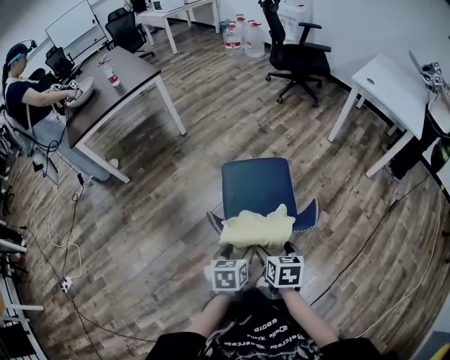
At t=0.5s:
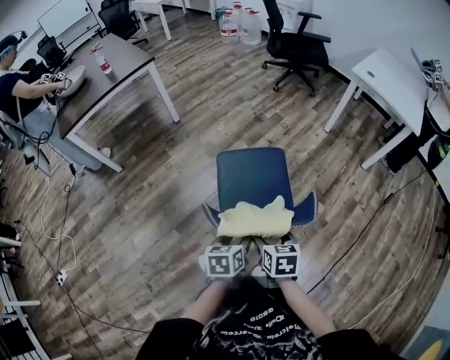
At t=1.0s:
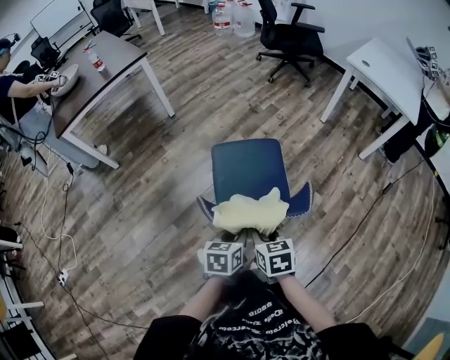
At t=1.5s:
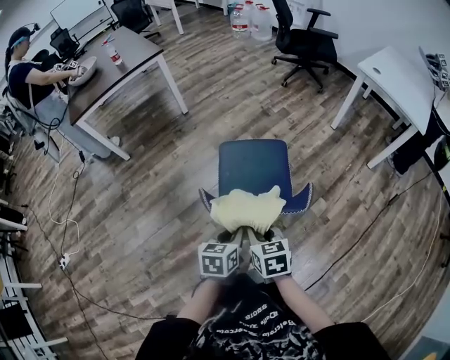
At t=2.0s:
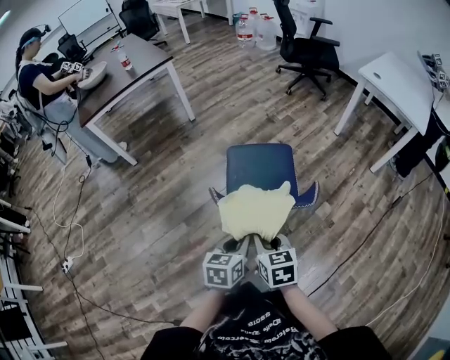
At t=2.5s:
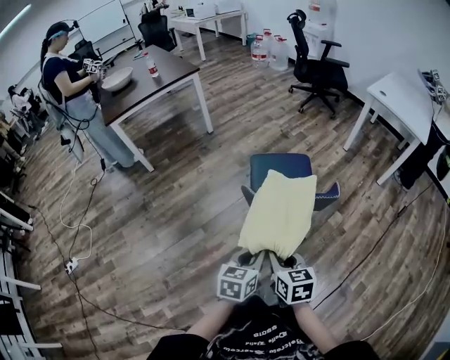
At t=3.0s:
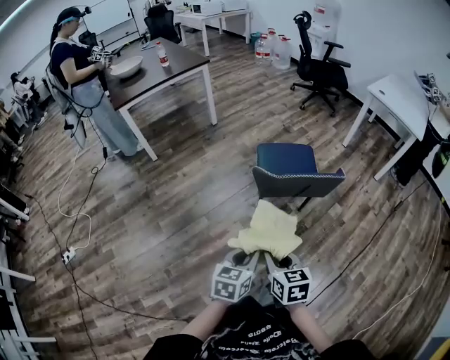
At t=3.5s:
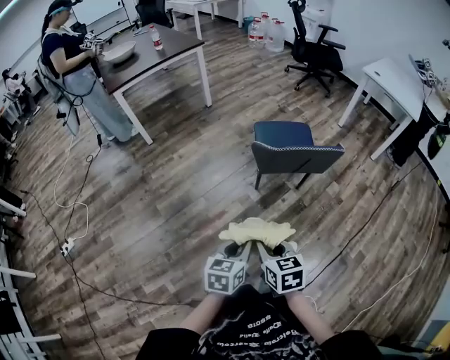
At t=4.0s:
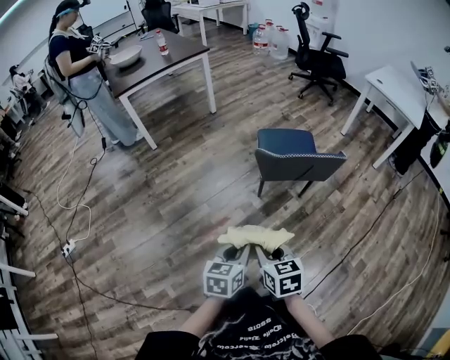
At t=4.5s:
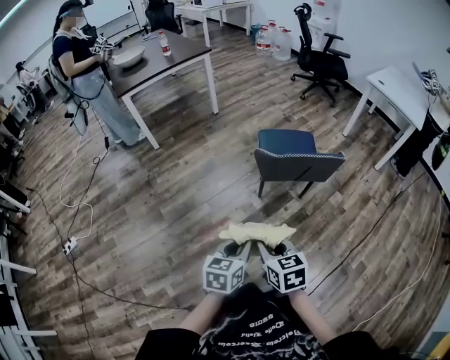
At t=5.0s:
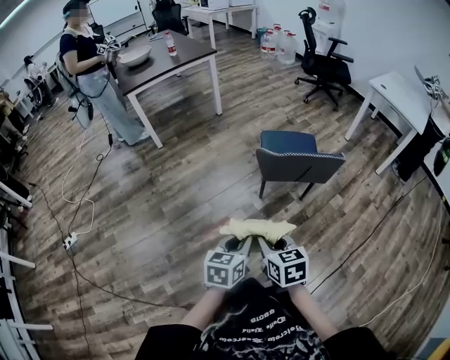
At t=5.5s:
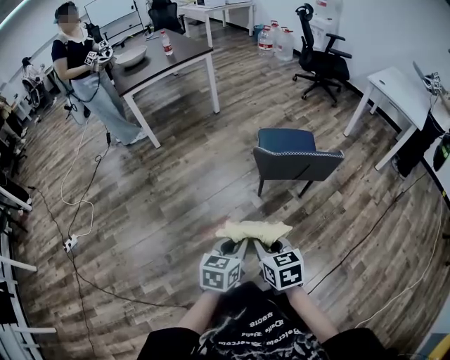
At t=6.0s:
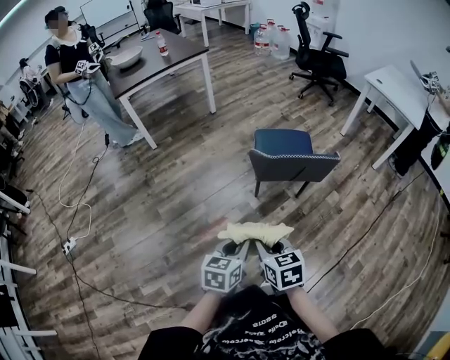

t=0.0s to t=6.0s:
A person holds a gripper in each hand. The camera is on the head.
t=0.0s to t=2.0s: The right gripper moves roughly 5 cm, and closes up. Meanwhile the left gripper moves roughly 5 cm, and closes up.
t=2.0s to t=4.0s: Both grippers travel together backward and to the left, about 30 cm.
t=4.0s to t=6.0s: The grippers make only small movements.

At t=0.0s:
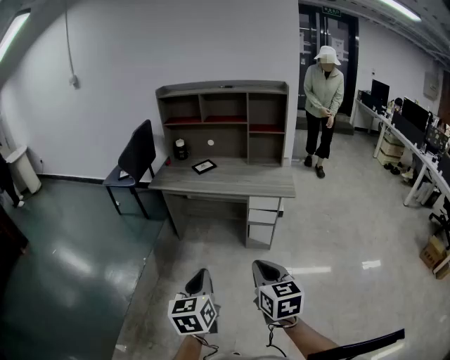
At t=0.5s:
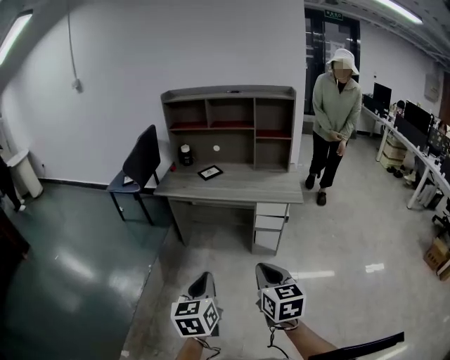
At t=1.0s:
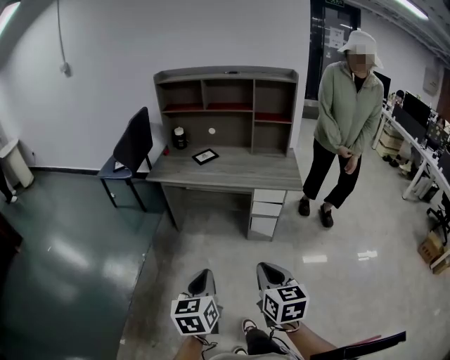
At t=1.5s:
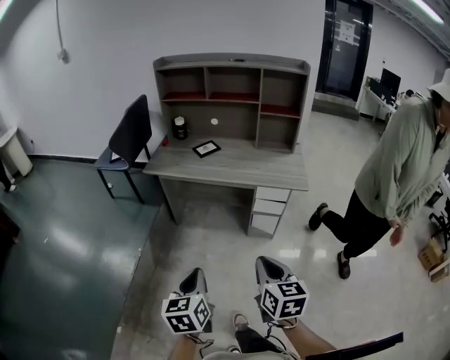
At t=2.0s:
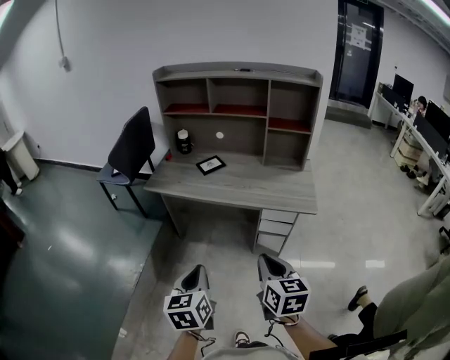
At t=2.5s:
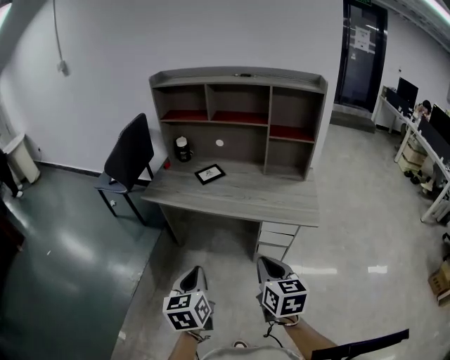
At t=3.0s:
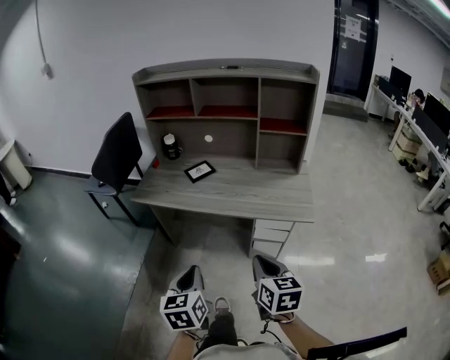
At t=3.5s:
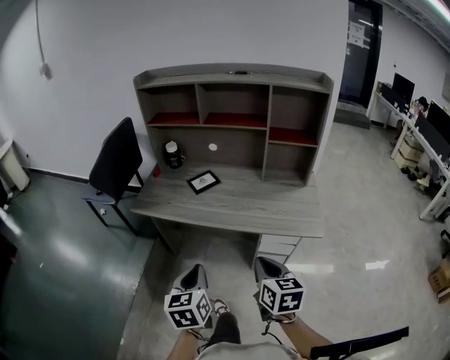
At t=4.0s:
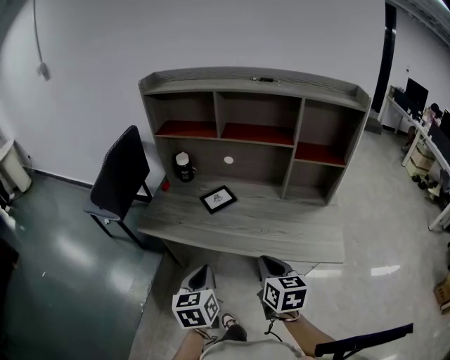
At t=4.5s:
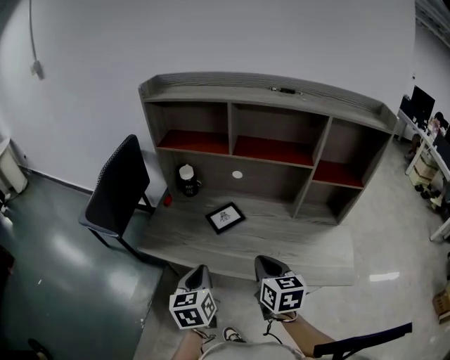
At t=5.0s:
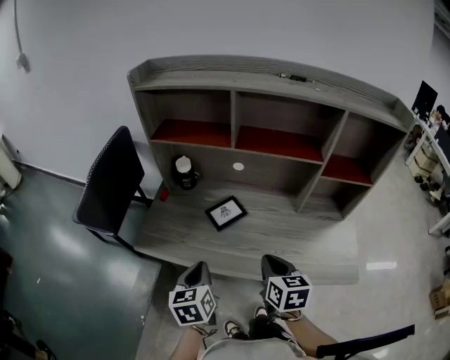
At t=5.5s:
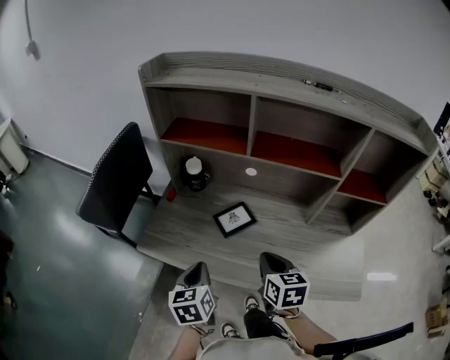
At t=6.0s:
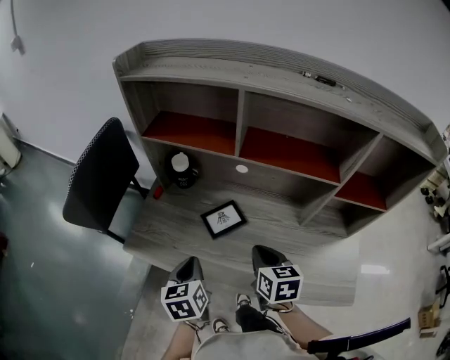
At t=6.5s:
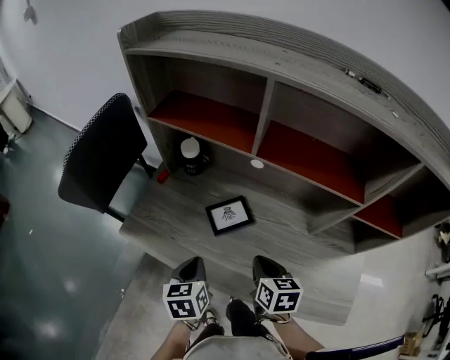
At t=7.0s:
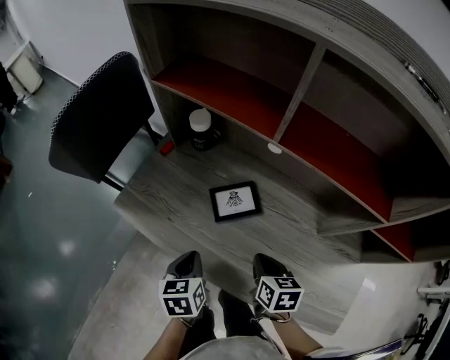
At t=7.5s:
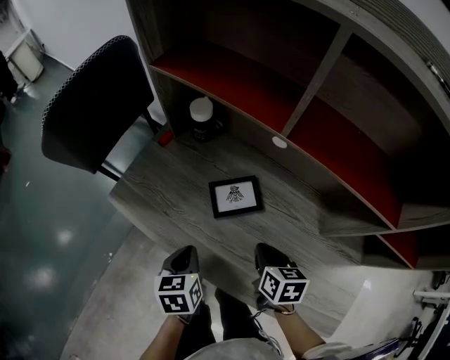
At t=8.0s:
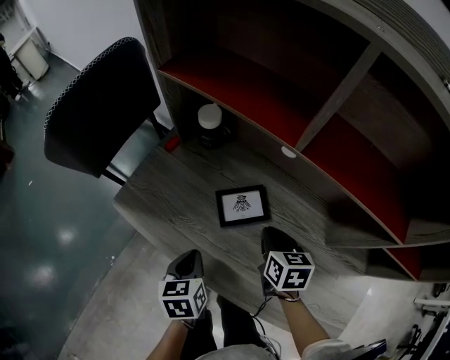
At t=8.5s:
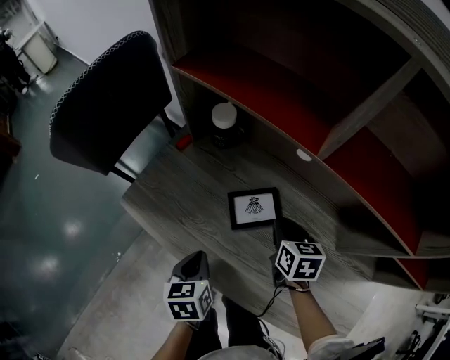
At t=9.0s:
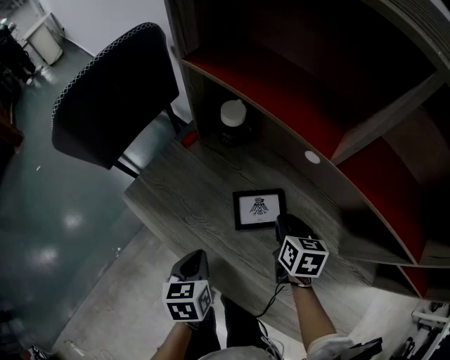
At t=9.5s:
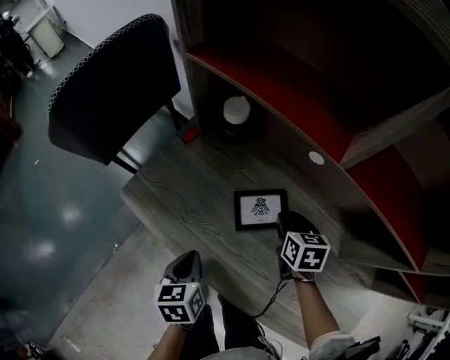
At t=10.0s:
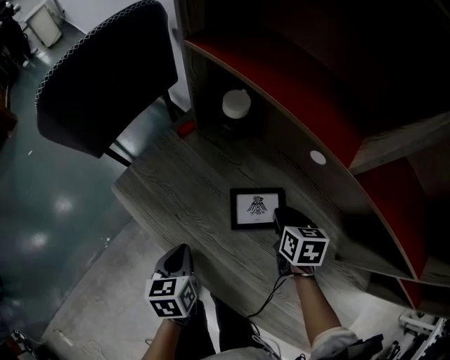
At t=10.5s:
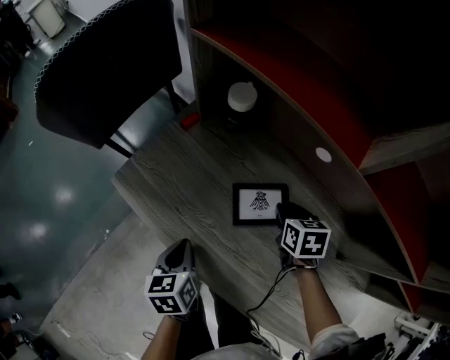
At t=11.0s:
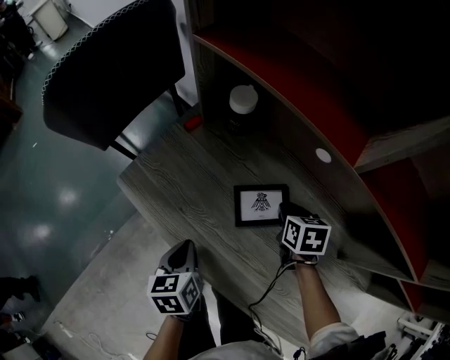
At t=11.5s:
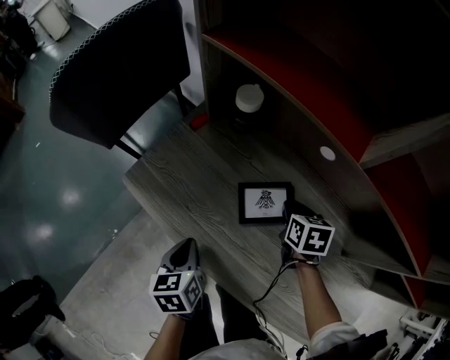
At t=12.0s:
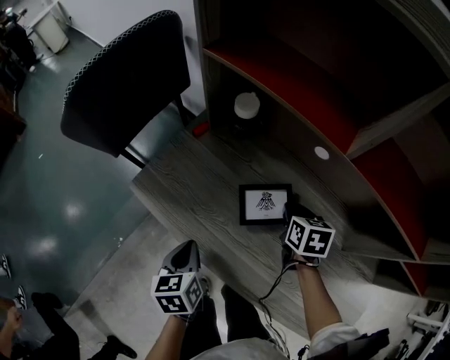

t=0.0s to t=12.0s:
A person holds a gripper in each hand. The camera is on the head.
t=0.0s to t=2.0s: Both grippers travel together forward, some 20 cm.
t=2.0s to t=4.0s: The grippers both shift forward by approximately 30 cm.
t=4.0s to t=6.0s: The two grippers go roughly 25 cm forward.
t=6.0s to t=8.0s: The right gripper moves downward and forward, some 15 cm. The left gripper travels downward by about 10 cm.
t=8.0s to t=10.0s: The right gripper moves forward and downward, about 10 cm, and opens. Meanwhile the left gripper changes place by about 5 cm.
t=10.0s to t=12.0s: The grippers stay close to where they were, moving slightly.

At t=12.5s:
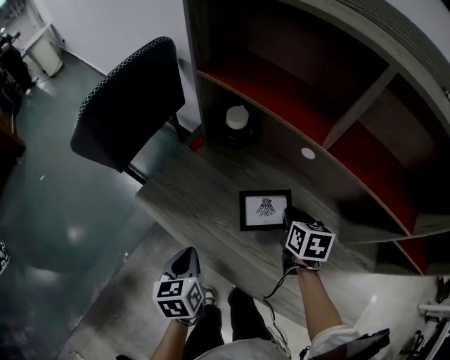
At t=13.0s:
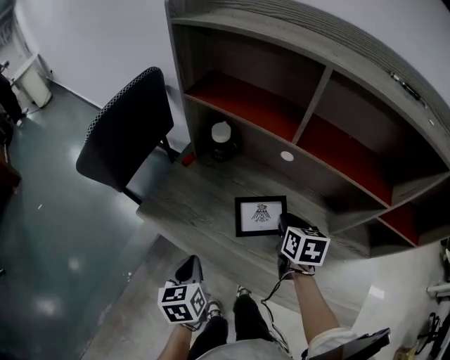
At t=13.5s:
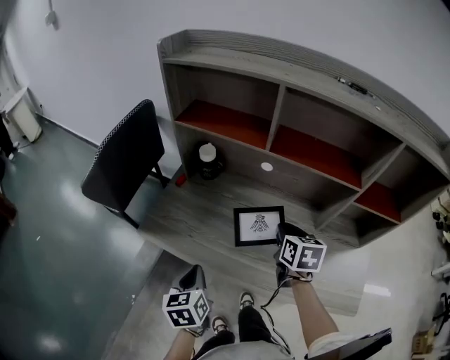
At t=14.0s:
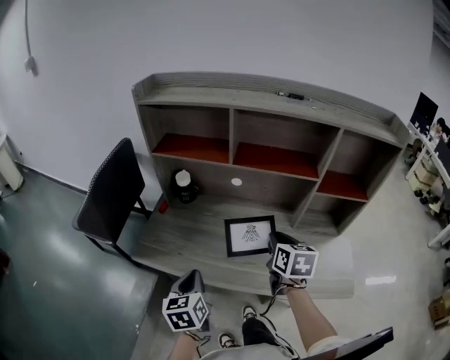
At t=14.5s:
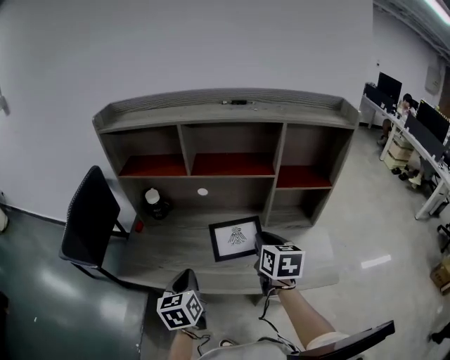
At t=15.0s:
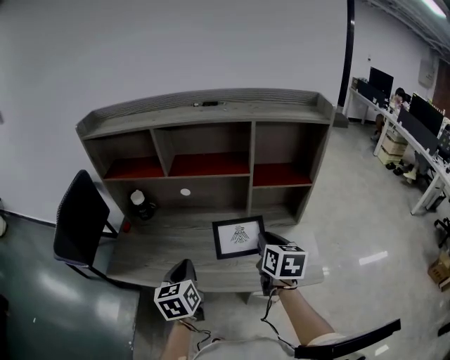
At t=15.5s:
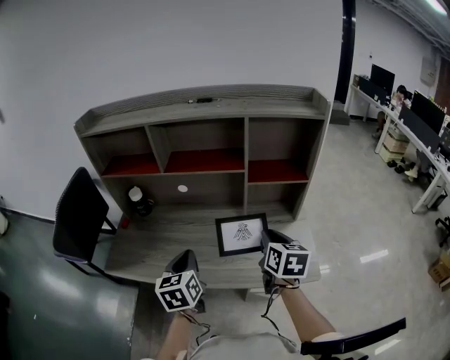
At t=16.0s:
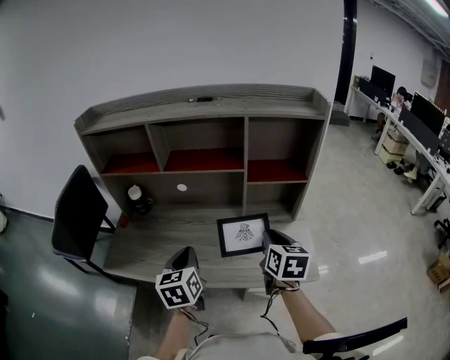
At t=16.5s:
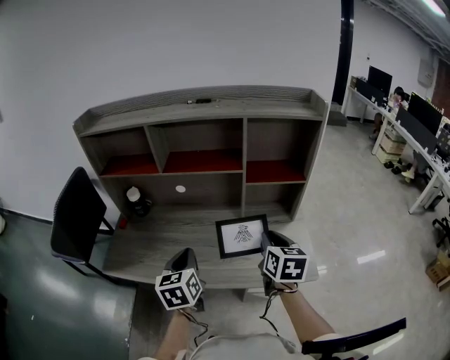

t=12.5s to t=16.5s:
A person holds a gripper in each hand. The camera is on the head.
t=12.5s to t=14.5s: The left gripper moves upward, approximately 15 cm, and turns by about 30 degrees, while the right gripper moves approximately 30 cm, and rotates roughly 30 degrees.
t=14.5s to t=16.5s: Both grippers travel together to the right, some 10 cm.

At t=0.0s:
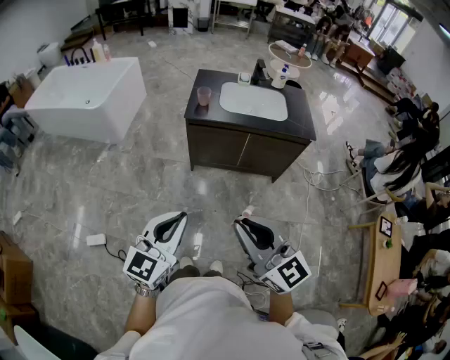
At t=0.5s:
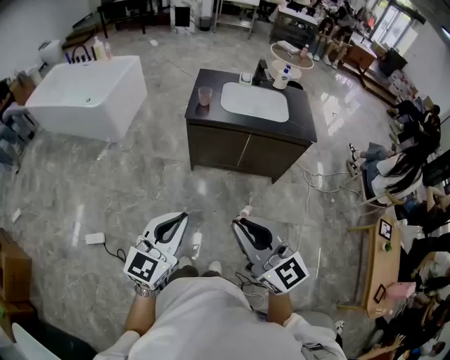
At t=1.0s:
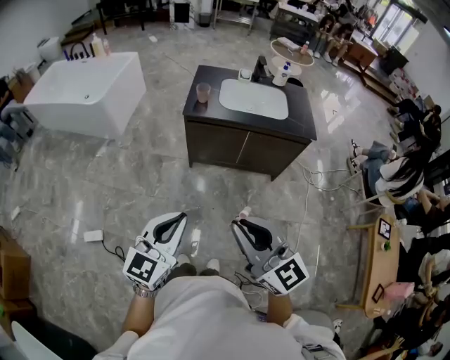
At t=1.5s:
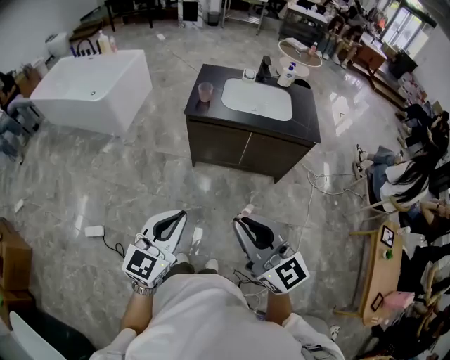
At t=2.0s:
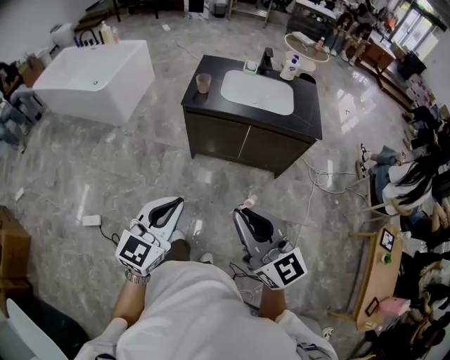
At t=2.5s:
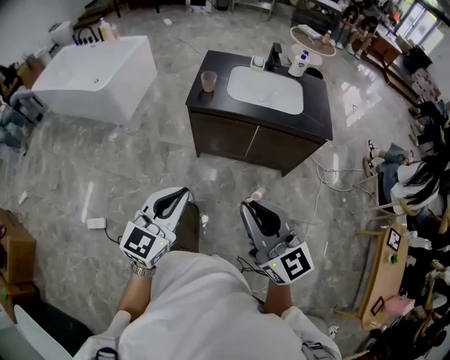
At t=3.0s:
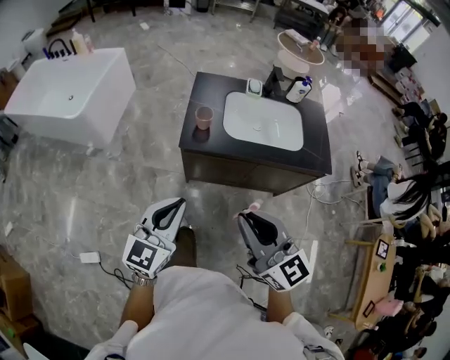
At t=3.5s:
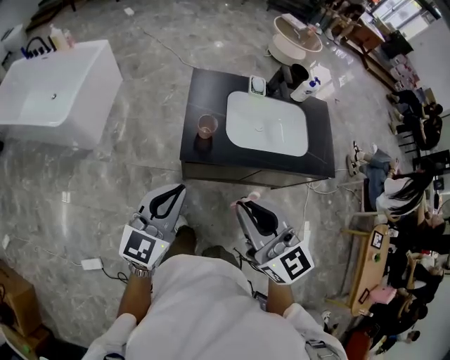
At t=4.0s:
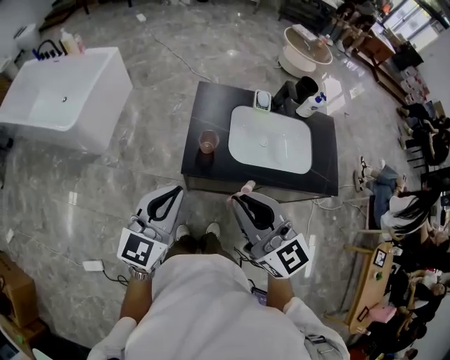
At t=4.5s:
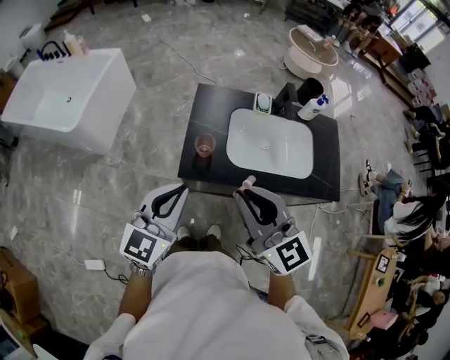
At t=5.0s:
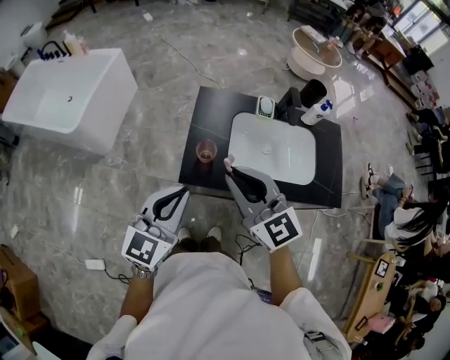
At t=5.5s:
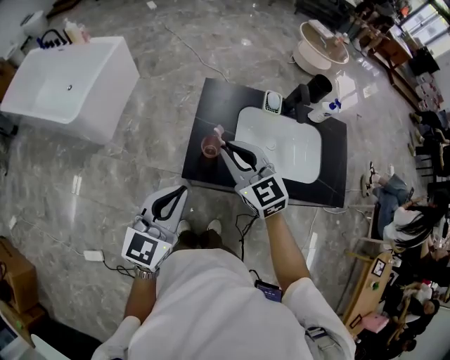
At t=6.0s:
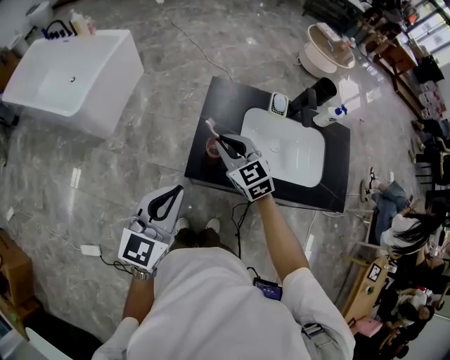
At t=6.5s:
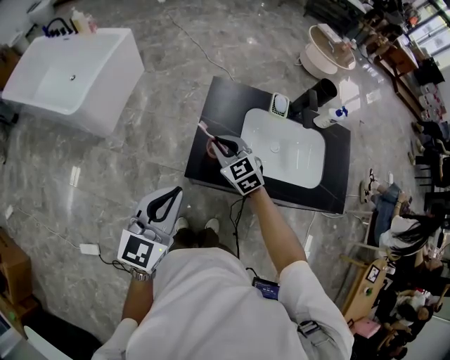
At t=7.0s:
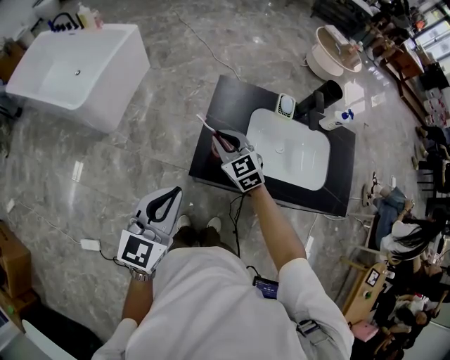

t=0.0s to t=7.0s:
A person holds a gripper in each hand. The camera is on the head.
t=0.0s to t=2.0s: The right gripper is displaced to the right and forward by approximately 10 cm. The left gripper goes approximately 5 cm to the right.
t=2.0s to t=3.5s: Both grippers are carried forward, some 50 cm.
t=3.5s to t=5.0s: The left gripper shifts some 10 cm forward and to the right; the right gripper heads forward, covering approximately 15 cm.
t=5.0s to t=7.0s: The right gripper goes approximately 25 cm downward and forward, while the left gripper travels to the left by approximately 5 cm.
